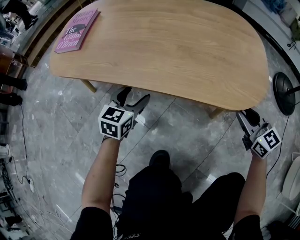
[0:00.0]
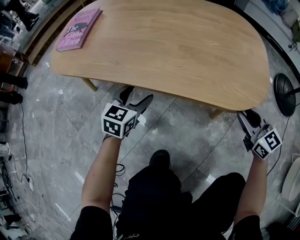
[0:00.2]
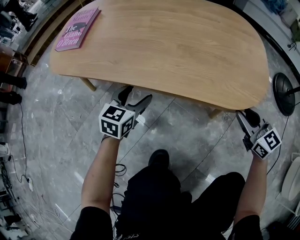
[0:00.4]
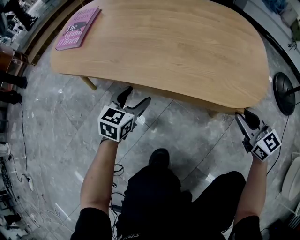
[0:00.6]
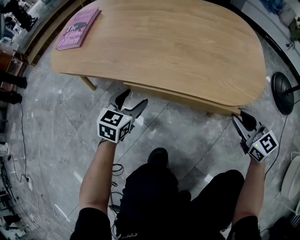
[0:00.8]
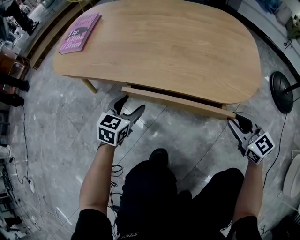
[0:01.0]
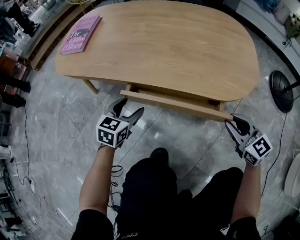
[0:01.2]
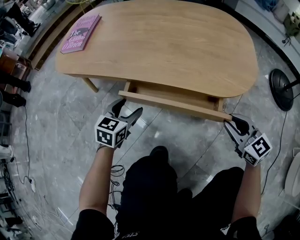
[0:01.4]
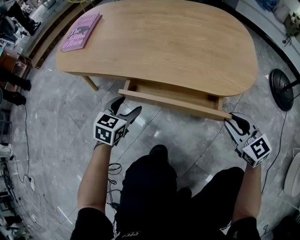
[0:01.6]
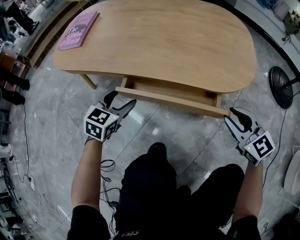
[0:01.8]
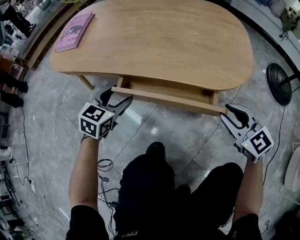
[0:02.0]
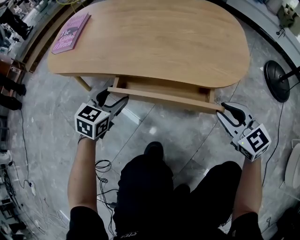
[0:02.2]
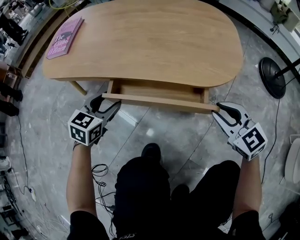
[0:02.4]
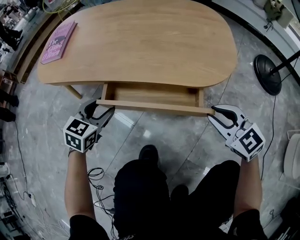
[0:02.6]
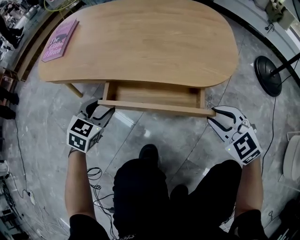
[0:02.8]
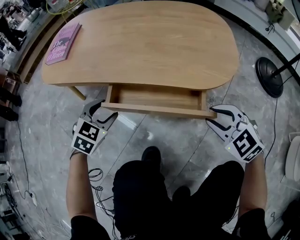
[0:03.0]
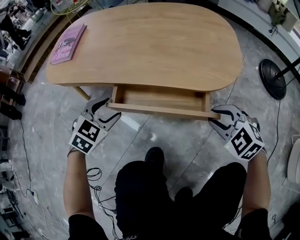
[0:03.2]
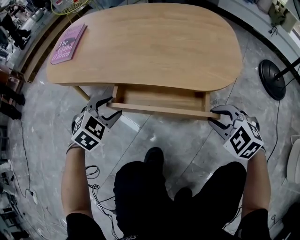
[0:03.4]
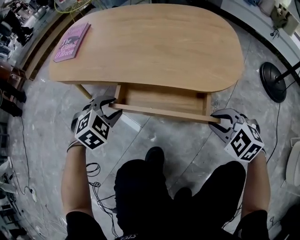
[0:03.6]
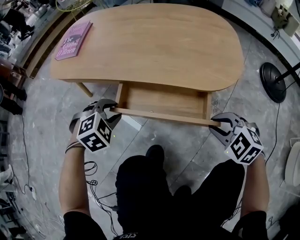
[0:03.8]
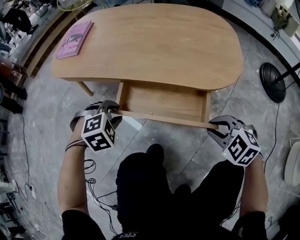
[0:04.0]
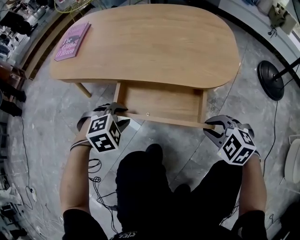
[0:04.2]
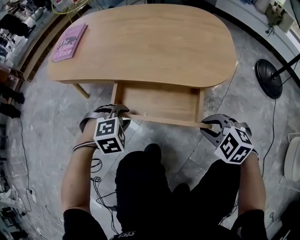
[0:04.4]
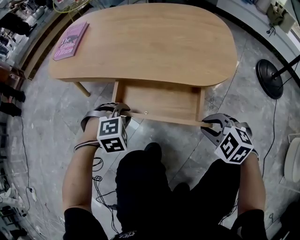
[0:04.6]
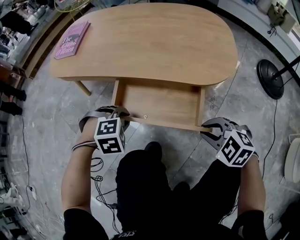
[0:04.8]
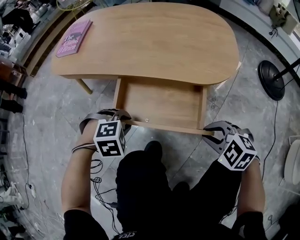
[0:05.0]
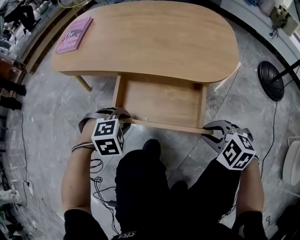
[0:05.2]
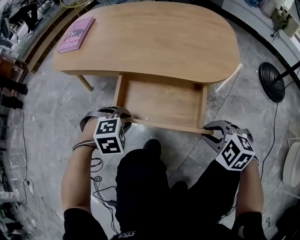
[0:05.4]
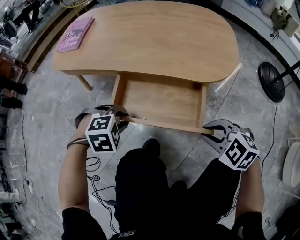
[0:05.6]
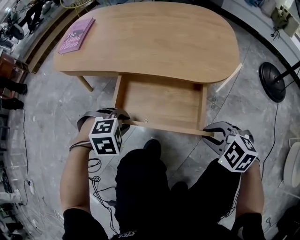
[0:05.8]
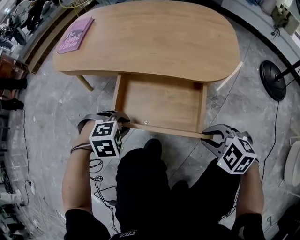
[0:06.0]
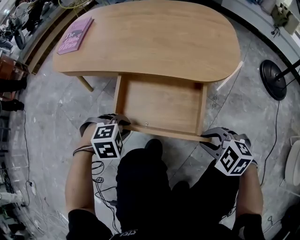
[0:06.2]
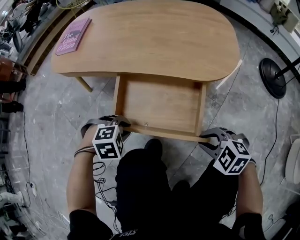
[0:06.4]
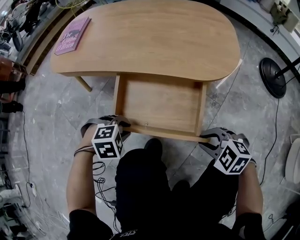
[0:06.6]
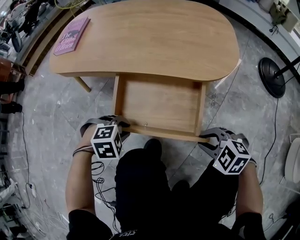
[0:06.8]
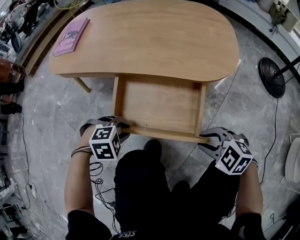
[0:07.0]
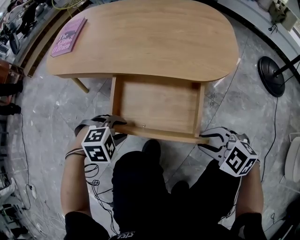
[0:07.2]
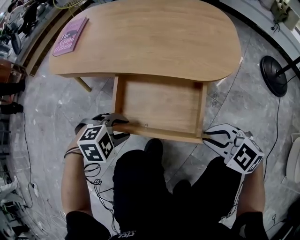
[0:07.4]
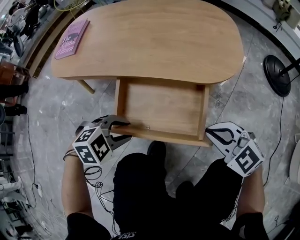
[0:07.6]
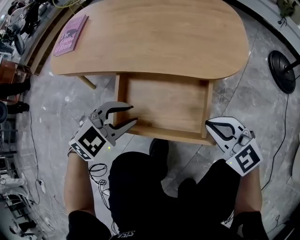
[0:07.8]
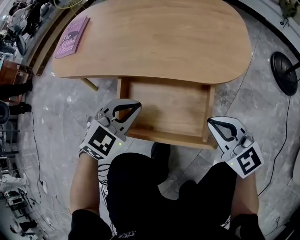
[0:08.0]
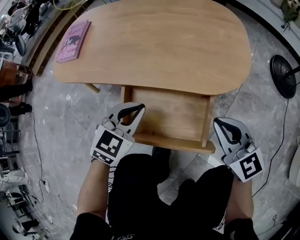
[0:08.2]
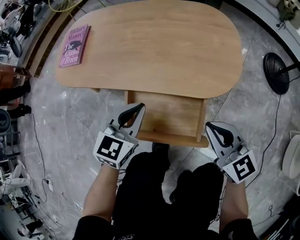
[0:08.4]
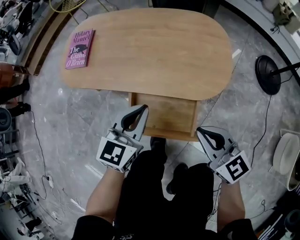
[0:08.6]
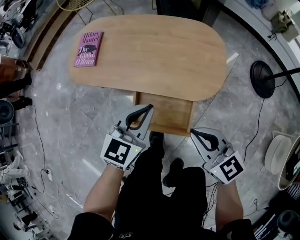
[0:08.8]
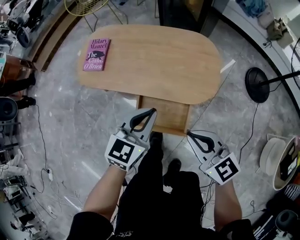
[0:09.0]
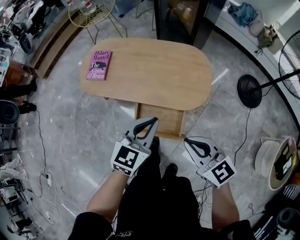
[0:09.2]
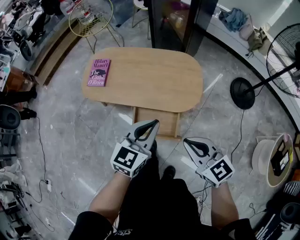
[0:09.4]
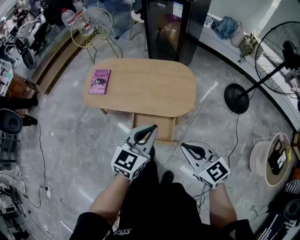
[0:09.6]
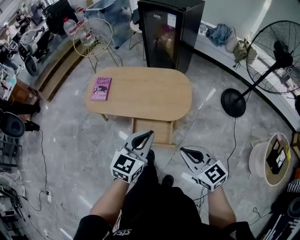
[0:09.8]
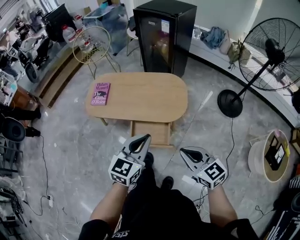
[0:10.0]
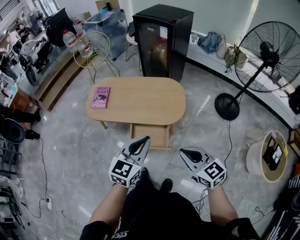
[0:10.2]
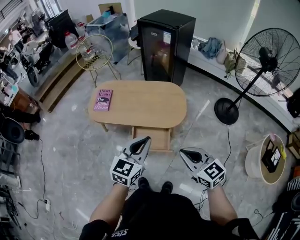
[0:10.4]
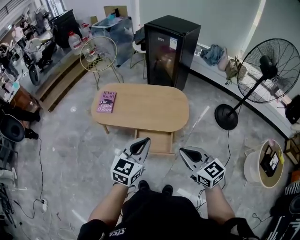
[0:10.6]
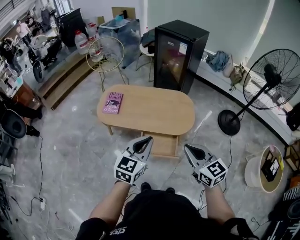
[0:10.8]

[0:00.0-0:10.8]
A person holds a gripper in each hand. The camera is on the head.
0:00.0 to 0:01.6: Both grippers travel together backward, about 10 cm.
0:01.6 to 0:03.0: The right gripper swivels roughly 30 degrees. The left gripper turns by about 20 degrees.
0:03.0 to 0:04.6: The left gripper moves backward, approximately 5 cm, turns by some 40 degrees, and closes; the right gripper changes place by approximately 5 cm.
0:04.6 to 0:06.2: The left gripper moves roughly 10 cm. Meanwhile the right gripper moves roughly 5 cm.
0:06.2 to 0:07.8: The left gripper moves upward, some 10 cm, and angles its fingers upward, by approximately 30 degrees. Meanwhile the right gripper ends up some 10 cm from where it was, and tips its fingers upward by approximately 30 degrees.
0:07.8 to 0:09.2: The two grippers go approximately 40 cm upward. The right gripper changes its angle by some 20 degrees; the left gripper turns by approximately 40 degrees, and closes its fingers.
0:09.2 to 0:10.8: Both grippers travel together upward and backward, roughly 25 cm.

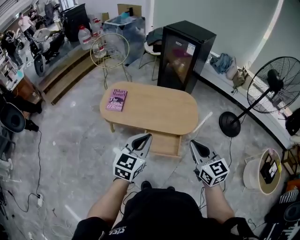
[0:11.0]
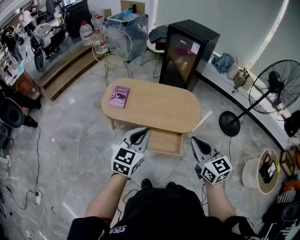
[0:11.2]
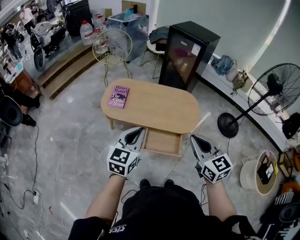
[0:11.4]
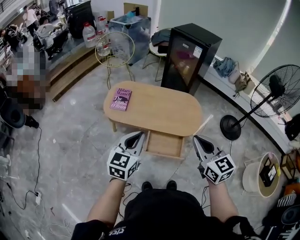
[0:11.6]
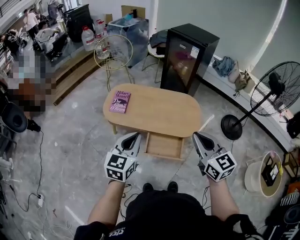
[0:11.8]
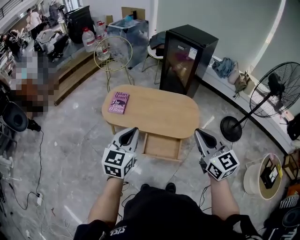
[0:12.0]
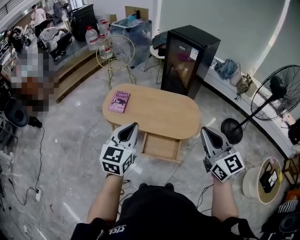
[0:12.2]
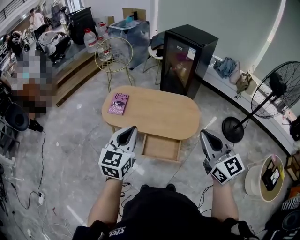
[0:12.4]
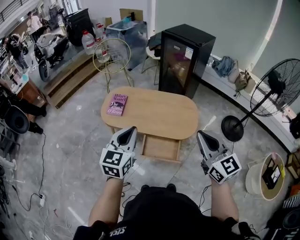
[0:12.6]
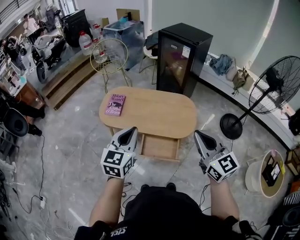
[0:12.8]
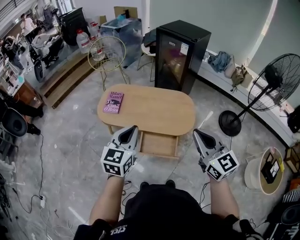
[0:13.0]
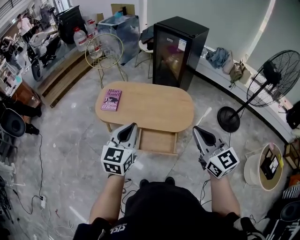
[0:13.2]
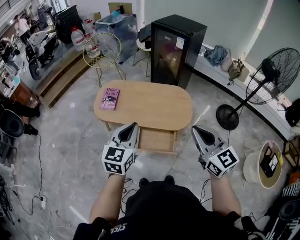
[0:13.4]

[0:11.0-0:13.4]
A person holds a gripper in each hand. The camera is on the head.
0:11.0 to 0:12.2: The right gripper is displaced upward by about 10 cm; the left gripper travels upward by some 5 cm.
0:12.2 to 0:13.4: The left gripper moves approximately 5 cm.

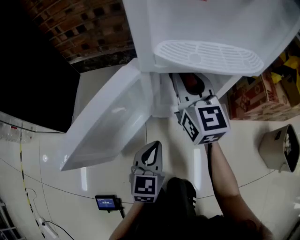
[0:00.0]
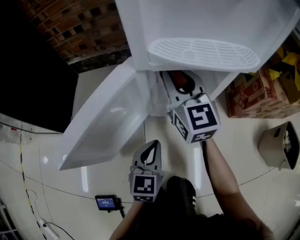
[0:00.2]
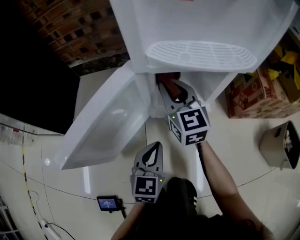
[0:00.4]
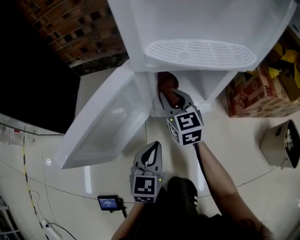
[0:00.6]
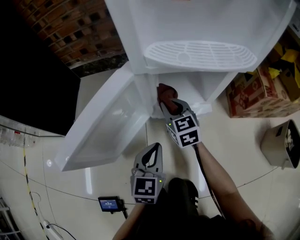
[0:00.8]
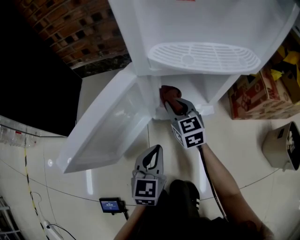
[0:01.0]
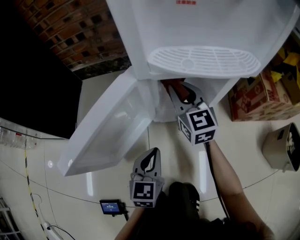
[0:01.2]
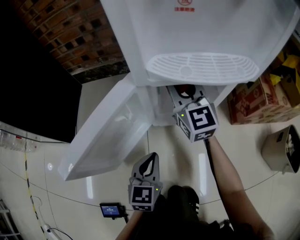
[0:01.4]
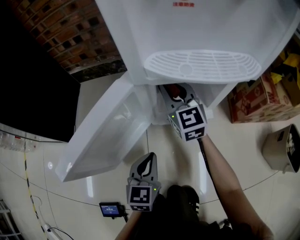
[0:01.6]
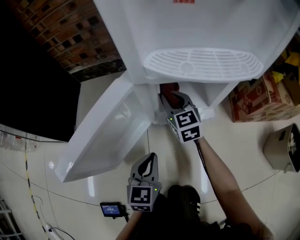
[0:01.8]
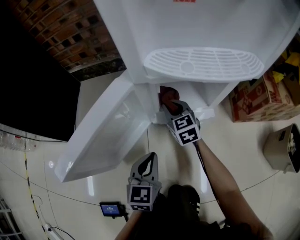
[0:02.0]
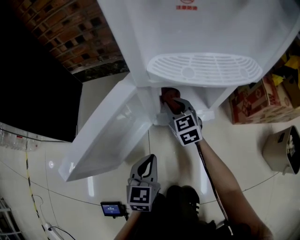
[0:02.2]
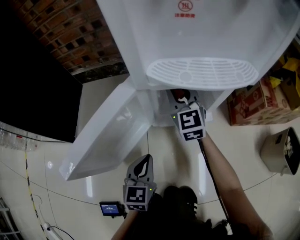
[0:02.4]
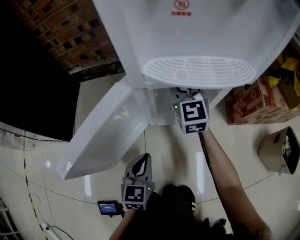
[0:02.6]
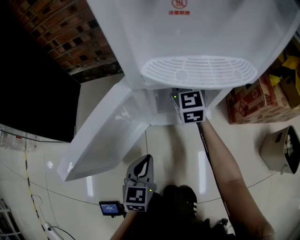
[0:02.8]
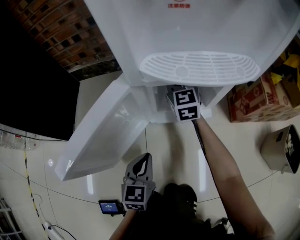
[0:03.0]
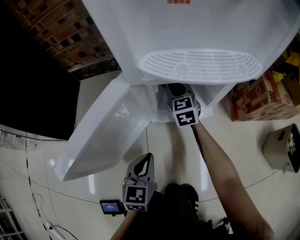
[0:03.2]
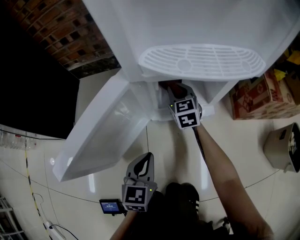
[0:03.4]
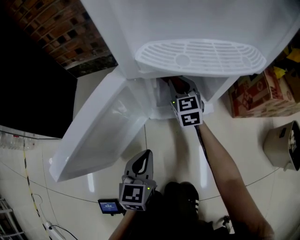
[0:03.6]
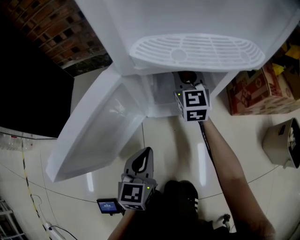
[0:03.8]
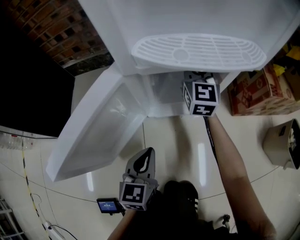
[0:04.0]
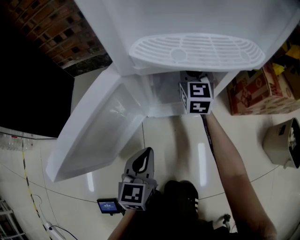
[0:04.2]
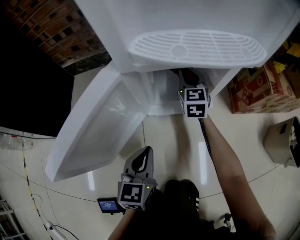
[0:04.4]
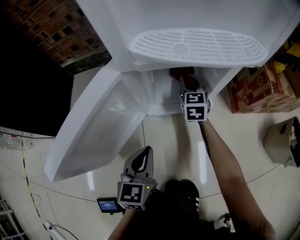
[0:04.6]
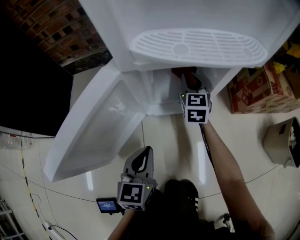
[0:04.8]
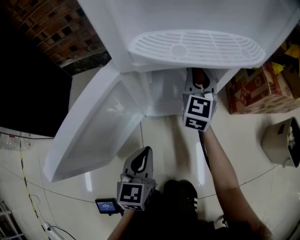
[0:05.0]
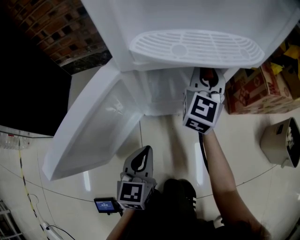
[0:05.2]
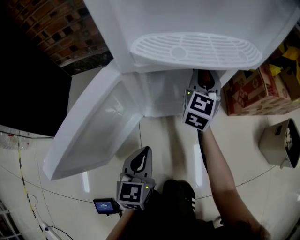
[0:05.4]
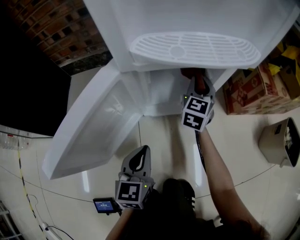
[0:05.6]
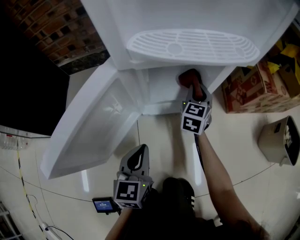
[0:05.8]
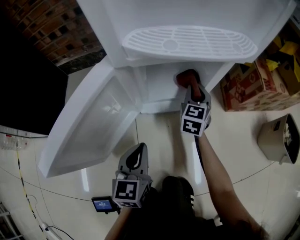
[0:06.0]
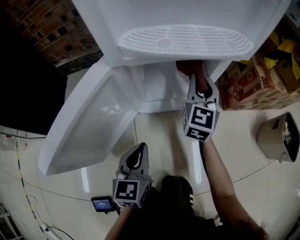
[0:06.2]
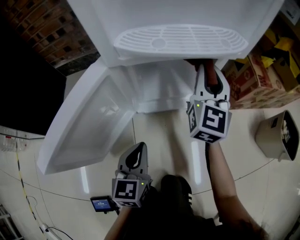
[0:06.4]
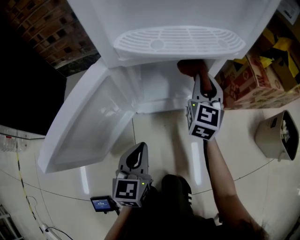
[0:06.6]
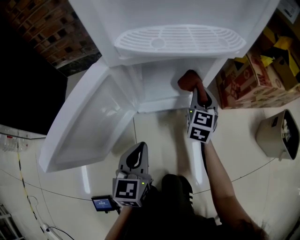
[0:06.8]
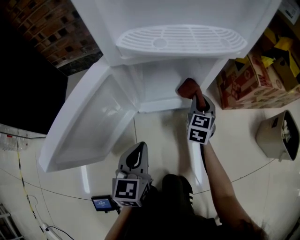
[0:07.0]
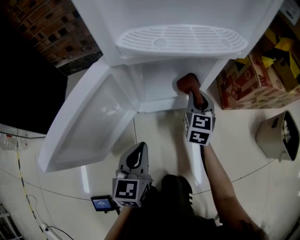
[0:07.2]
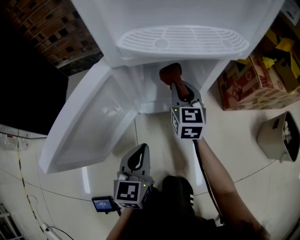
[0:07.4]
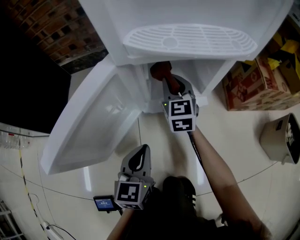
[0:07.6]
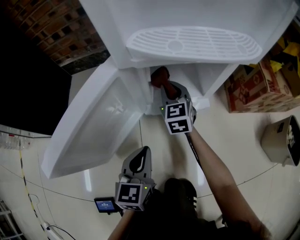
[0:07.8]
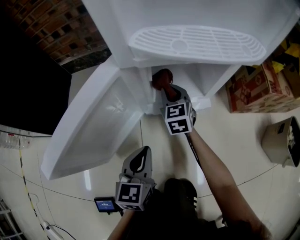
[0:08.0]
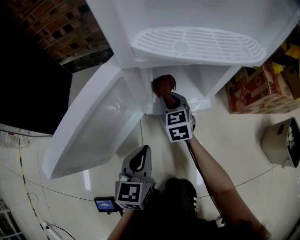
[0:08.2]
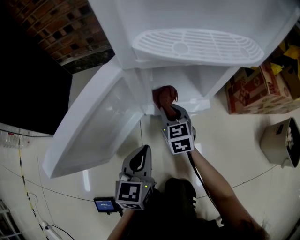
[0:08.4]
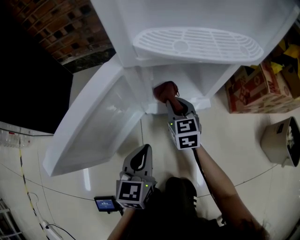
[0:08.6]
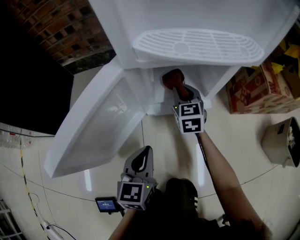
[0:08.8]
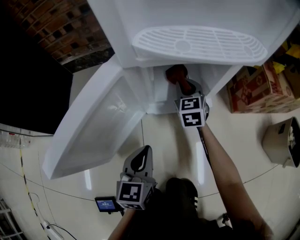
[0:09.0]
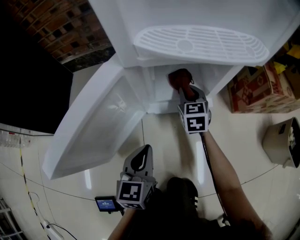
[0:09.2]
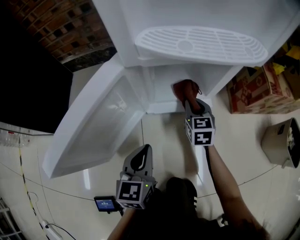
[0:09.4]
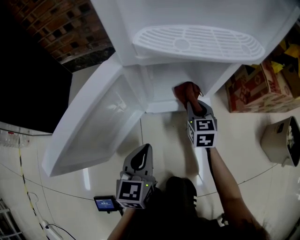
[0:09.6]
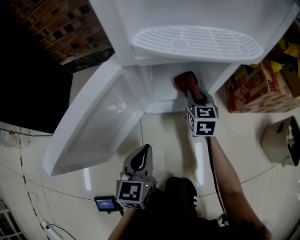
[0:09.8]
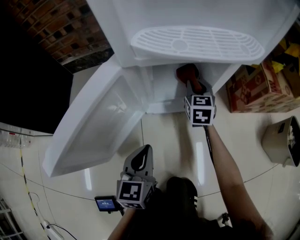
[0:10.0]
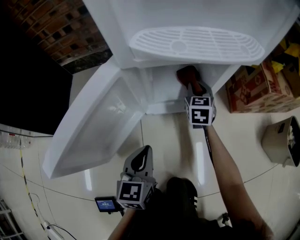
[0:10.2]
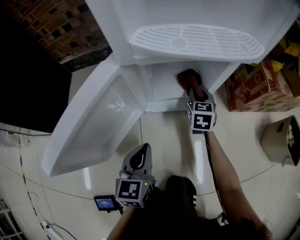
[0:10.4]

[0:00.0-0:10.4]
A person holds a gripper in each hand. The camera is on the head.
0:00.0 to 0:01.4: The right gripper reaches roughly 20 cm downward, then returns.
0:01.4 to 0:03.0: The right gripper moves up and down over roughly 20 cm, changing direction 2 times.
0:03.0 to 0:04.4: The right gripper swings up and down, some 15 cm each way, with 2 reversals.
0:04.4 to 0:06.0: The right gripper heads to the right and backward, covering about 10 cm, and moves roughly 15 cm upward and comes back.
0:06.0 to 0:07.4: The right gripper moves up and down over some 20 cm, changing direction 2 times.
0:07.4 to 0:09.0: The right gripper travels downward by some 5 cm.
0:09.0 to 0:10.4: The right gripper heads to the right, covering roughly 10 cm, and reaches roughly 5 cm backward, then returns.
